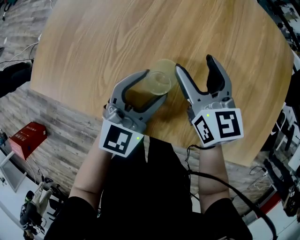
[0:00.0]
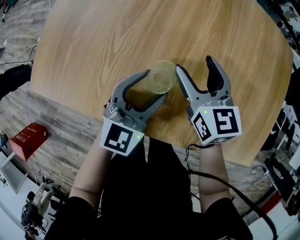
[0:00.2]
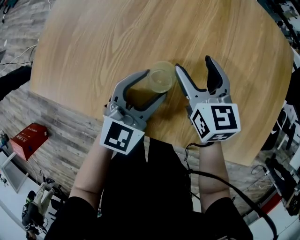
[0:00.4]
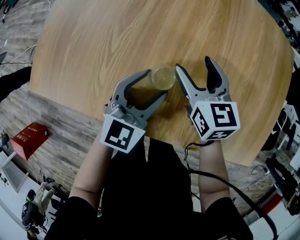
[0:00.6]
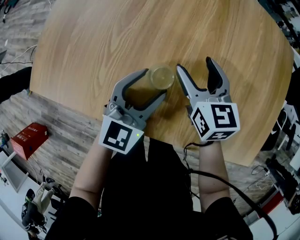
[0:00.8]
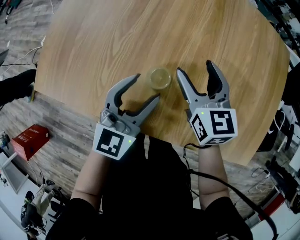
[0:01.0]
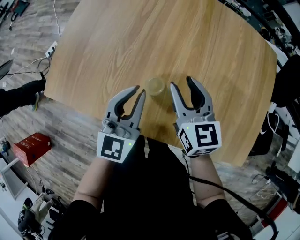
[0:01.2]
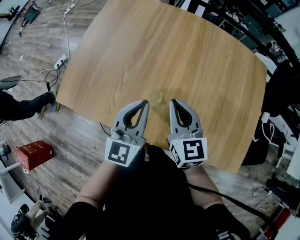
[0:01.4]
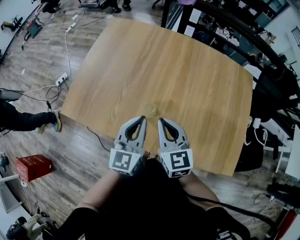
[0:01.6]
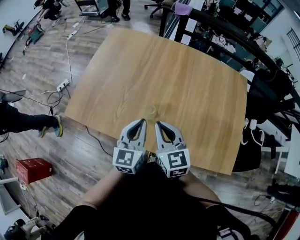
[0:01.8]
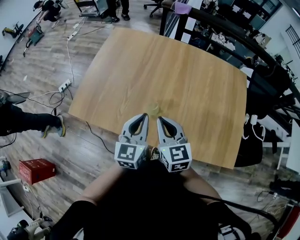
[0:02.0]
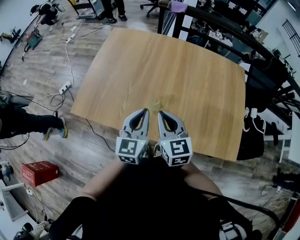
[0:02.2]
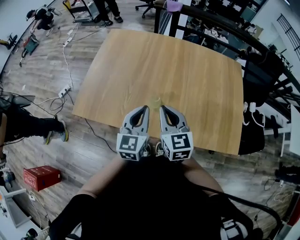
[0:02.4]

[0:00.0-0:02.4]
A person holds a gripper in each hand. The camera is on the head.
0.0 to 1.2 s: Both grippers travel together upward, approximately 10 cm. The left gripper closes; the right gripper closes.
1.2 to 2.4 s: Both grippers travel together upward and backward, roughly 20 cm. The right gripper closes.

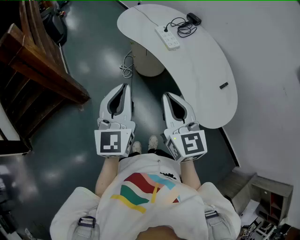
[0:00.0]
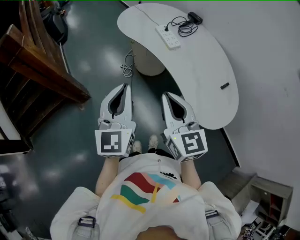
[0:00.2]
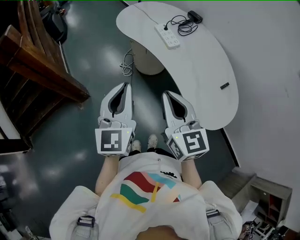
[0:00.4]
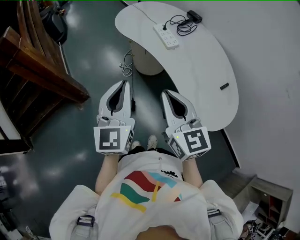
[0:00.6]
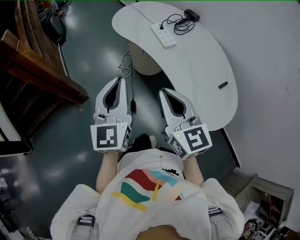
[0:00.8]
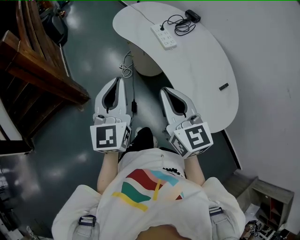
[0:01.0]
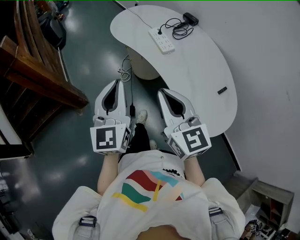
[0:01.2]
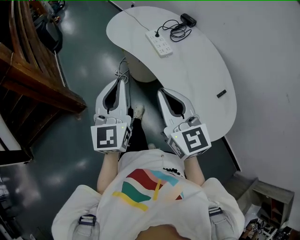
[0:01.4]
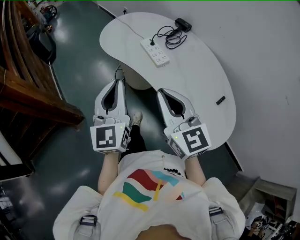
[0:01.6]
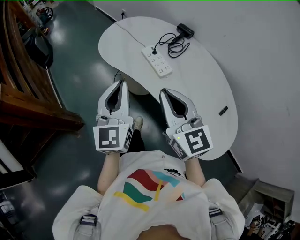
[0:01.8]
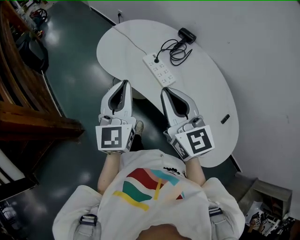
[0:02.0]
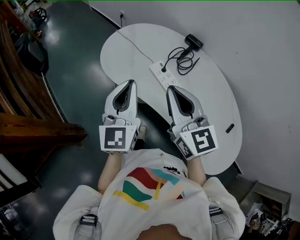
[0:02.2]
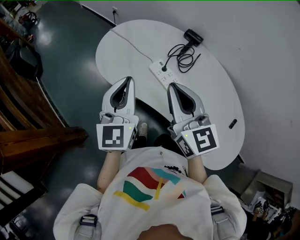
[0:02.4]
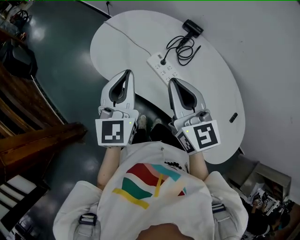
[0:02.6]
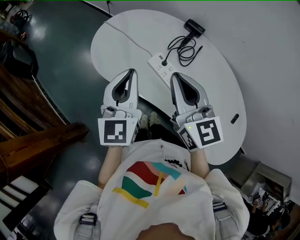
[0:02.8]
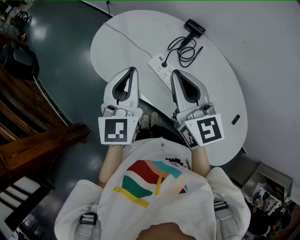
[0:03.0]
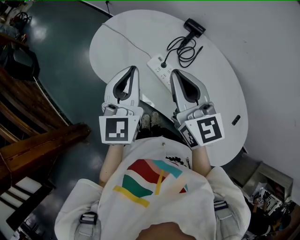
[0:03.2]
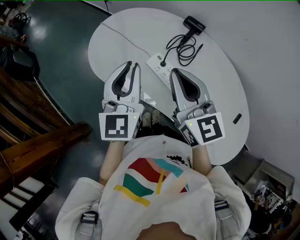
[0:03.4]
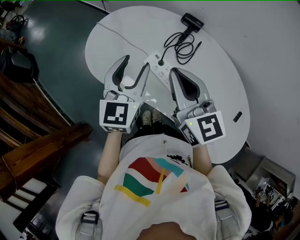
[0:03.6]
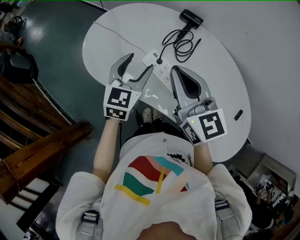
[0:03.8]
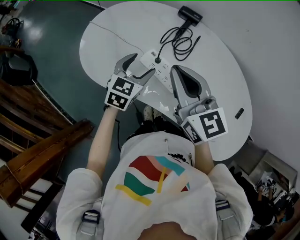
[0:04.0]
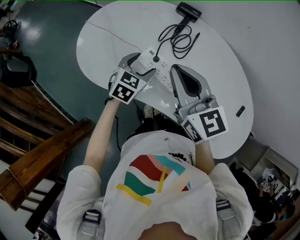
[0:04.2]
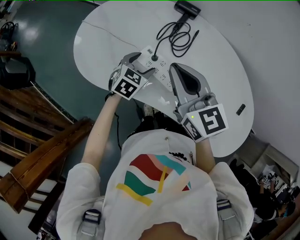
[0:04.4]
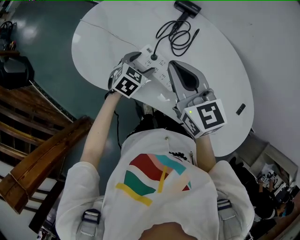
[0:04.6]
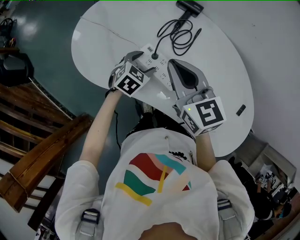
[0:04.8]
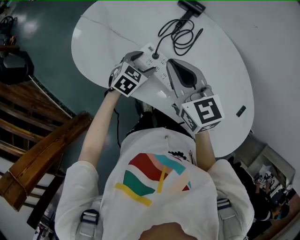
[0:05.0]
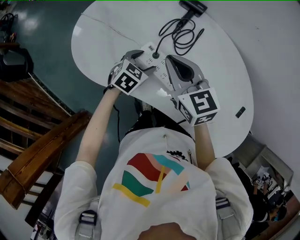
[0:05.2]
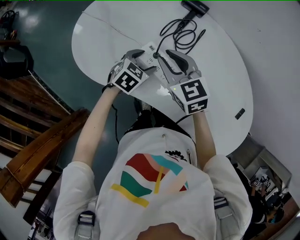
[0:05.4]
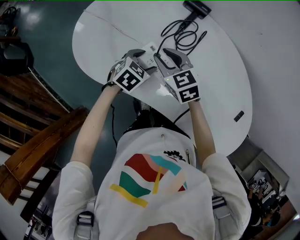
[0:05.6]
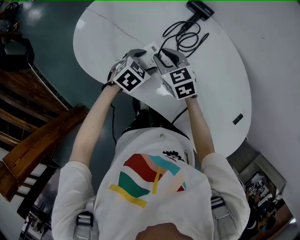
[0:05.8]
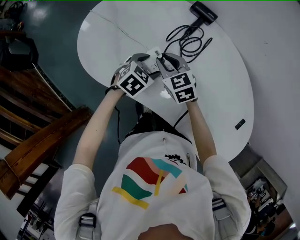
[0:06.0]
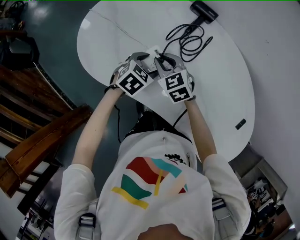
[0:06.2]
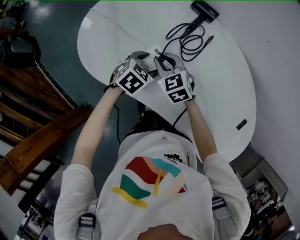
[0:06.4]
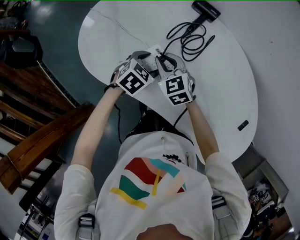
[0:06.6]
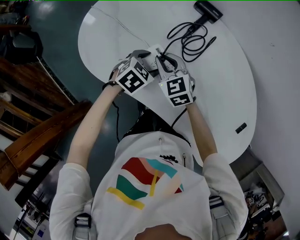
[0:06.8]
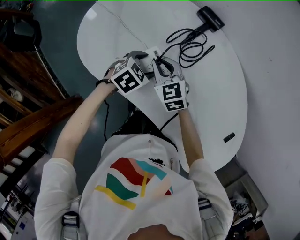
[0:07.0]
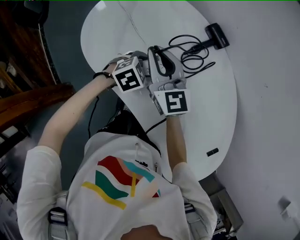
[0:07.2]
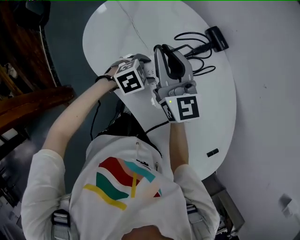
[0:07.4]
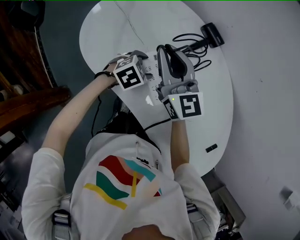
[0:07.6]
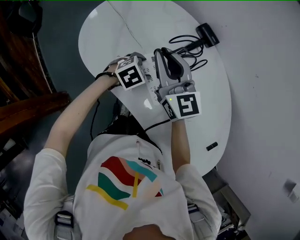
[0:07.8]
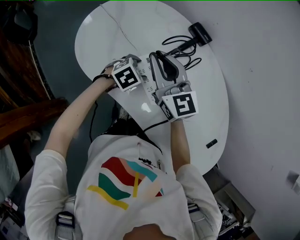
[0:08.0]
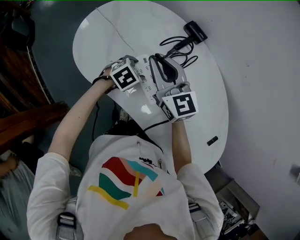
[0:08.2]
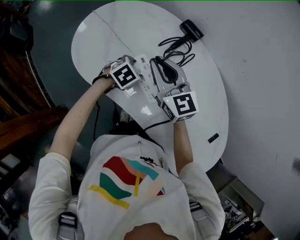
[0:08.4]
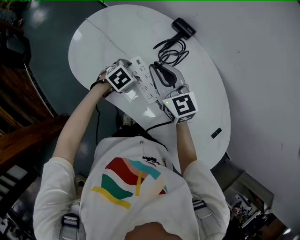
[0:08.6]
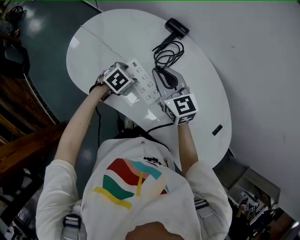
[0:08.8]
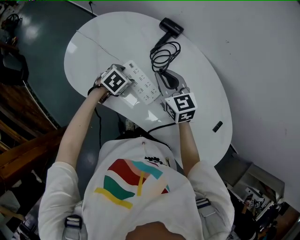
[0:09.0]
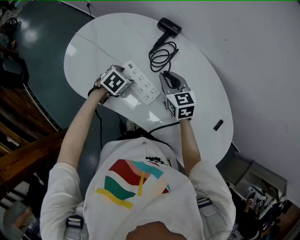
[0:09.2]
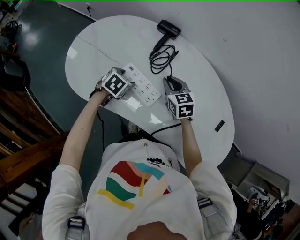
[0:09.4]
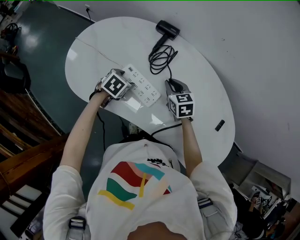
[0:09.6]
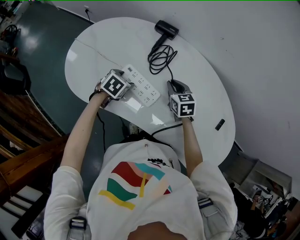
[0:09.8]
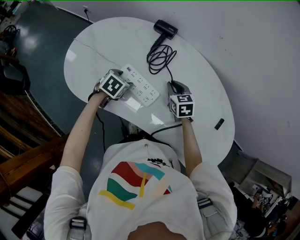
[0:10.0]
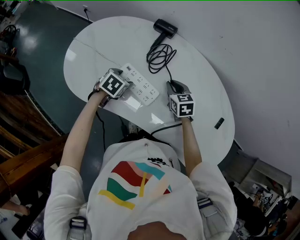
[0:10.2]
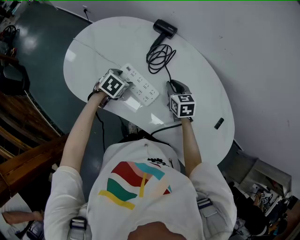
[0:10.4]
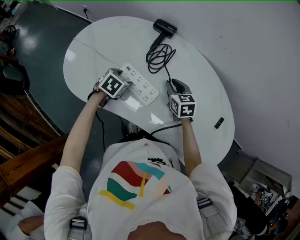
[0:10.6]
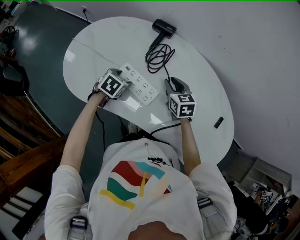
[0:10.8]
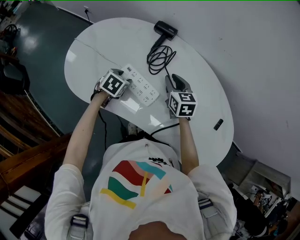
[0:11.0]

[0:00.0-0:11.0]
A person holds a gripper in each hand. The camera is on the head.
0.0 to 1.6 s: The right gripper goes approximately 15 cm forward and to the right. The left gripper is displaced forward by some 15 cm.
1.6 to 3.2 s: The grippers both shift forward by some 30 cm. The left gripper changes its angle by some 20 degrees.
3.2 to 4.8 s: The right gripper goes some 10 cm downward and forward, while the left gripper moves downward, about 25 cm, points its fingers roughly 50 degrees further downward, and opens its fingers.
4.8 to 6.2 s: The right gripper travels downward by approximately 20 cm, and rotates some 30 degrees.
6.2 to 7.8 s: The right gripper shifts roughly 15 cm upward, and tips its fingers upward by about 30 degrees.
7.8 to 9.4 s: The right gripper goes approximately 20 cm to the right and downward, and angles its fingers downward, by about 30 degrees.
9.4 to 11.0 s: The grippers move only a little.

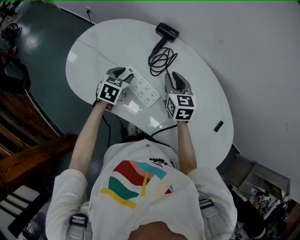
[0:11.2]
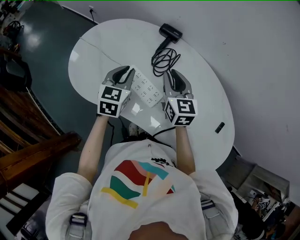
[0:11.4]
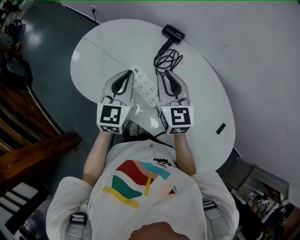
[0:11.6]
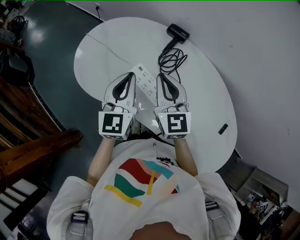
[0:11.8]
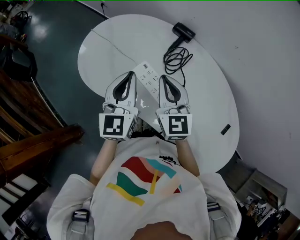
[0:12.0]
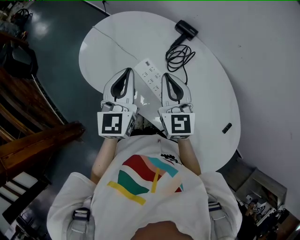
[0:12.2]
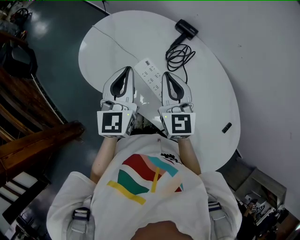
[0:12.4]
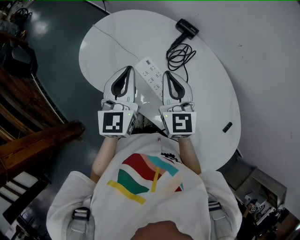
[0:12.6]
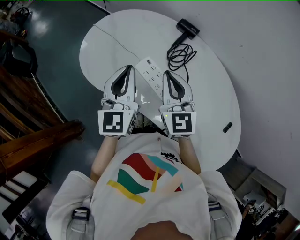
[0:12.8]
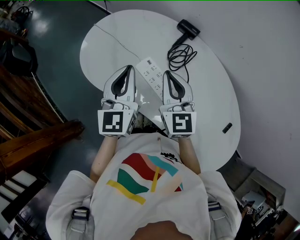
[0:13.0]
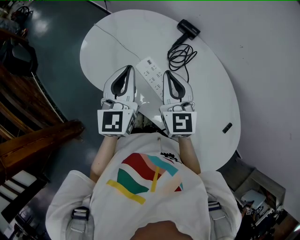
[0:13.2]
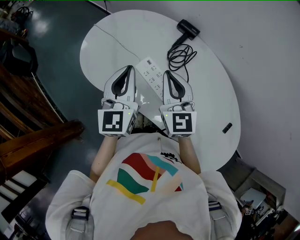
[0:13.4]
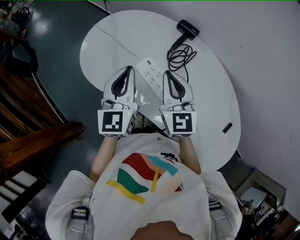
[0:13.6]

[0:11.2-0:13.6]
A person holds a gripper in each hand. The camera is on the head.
11.2 to 12.4 s: The left gripper heads upward and backward, covering some 20 cm, angles its fingers upward, by some 40 degrees, and closes. The right gripper moves to the left, upward and backward, about 15 cm, turns by about 20 degrees, and closes up.
12.4 to 13.6 s: Both grippers stay put.

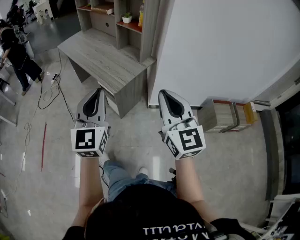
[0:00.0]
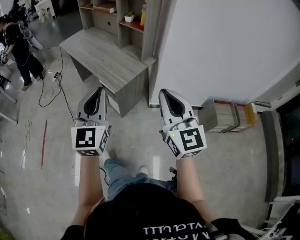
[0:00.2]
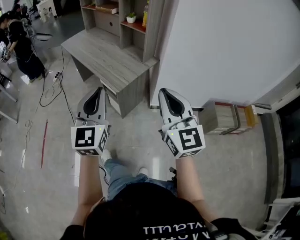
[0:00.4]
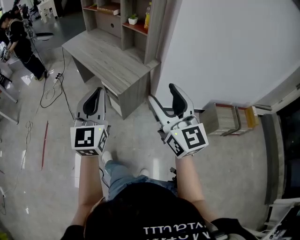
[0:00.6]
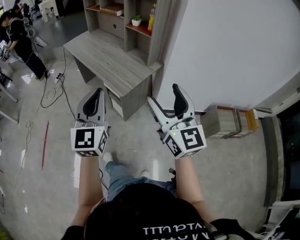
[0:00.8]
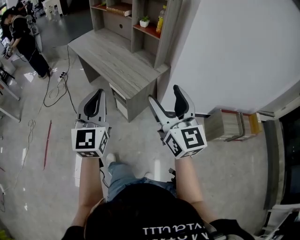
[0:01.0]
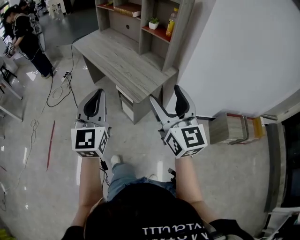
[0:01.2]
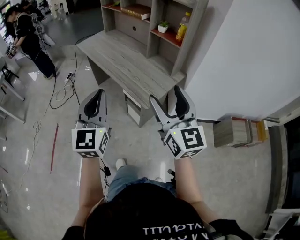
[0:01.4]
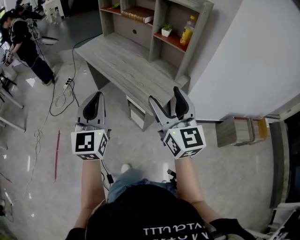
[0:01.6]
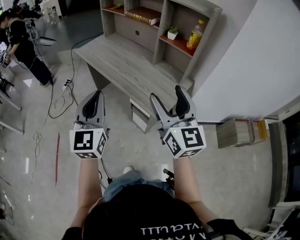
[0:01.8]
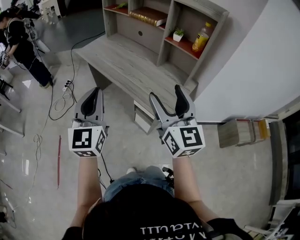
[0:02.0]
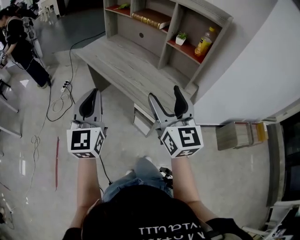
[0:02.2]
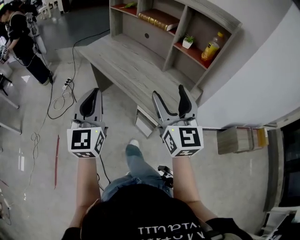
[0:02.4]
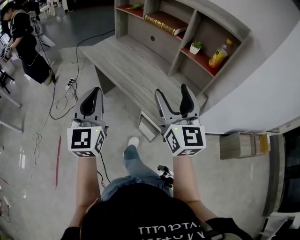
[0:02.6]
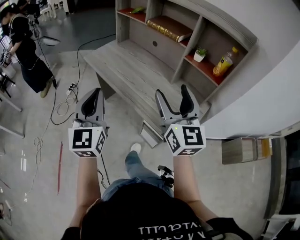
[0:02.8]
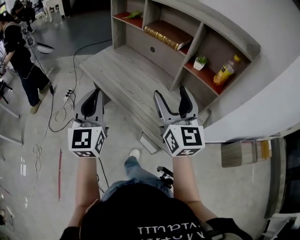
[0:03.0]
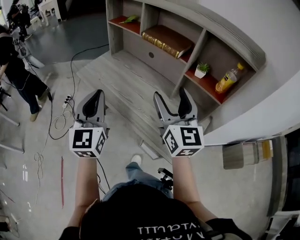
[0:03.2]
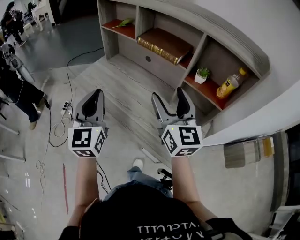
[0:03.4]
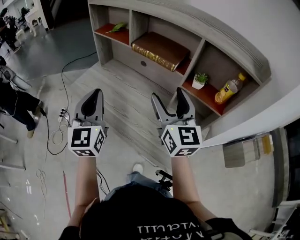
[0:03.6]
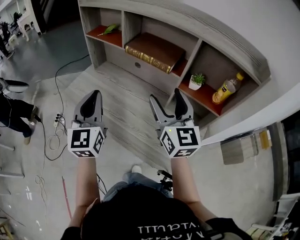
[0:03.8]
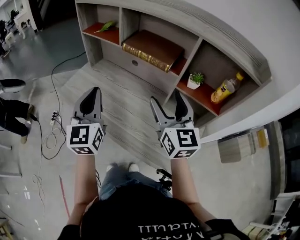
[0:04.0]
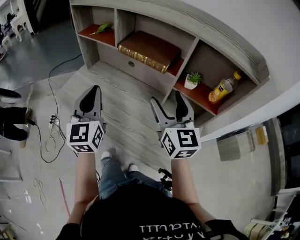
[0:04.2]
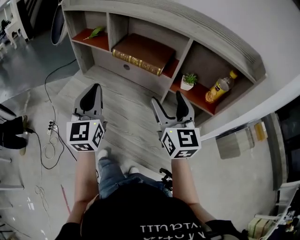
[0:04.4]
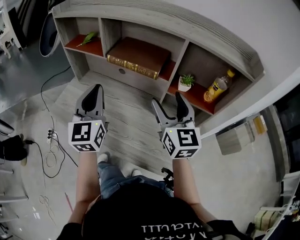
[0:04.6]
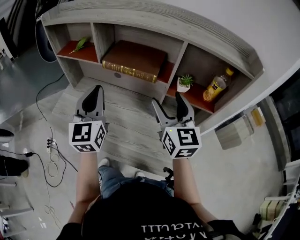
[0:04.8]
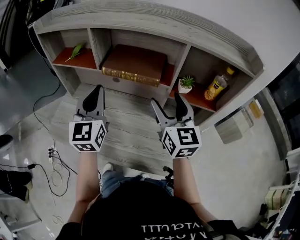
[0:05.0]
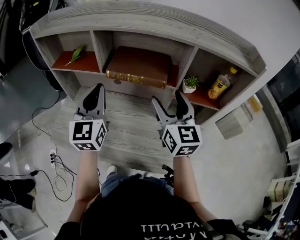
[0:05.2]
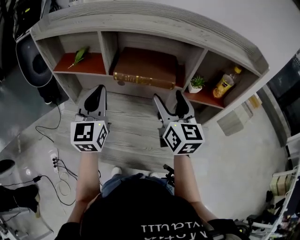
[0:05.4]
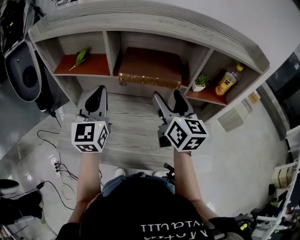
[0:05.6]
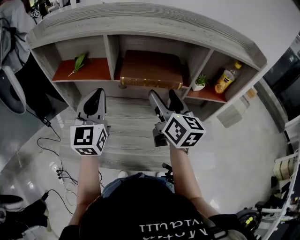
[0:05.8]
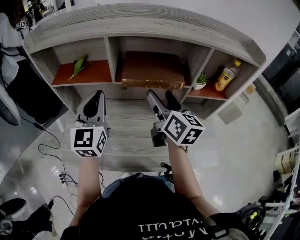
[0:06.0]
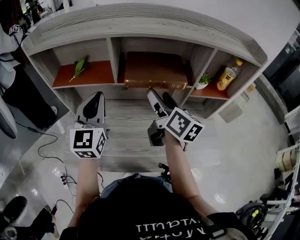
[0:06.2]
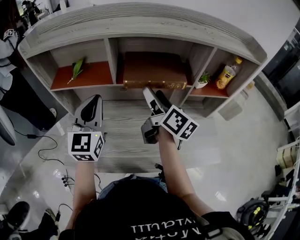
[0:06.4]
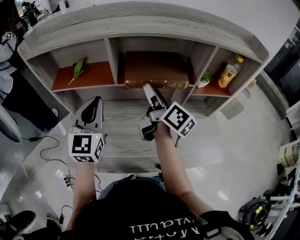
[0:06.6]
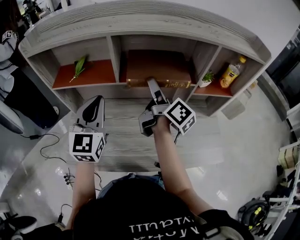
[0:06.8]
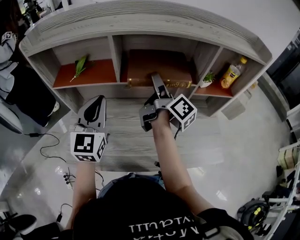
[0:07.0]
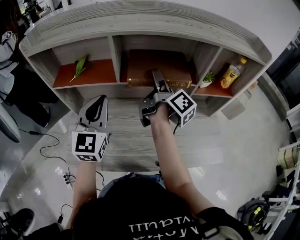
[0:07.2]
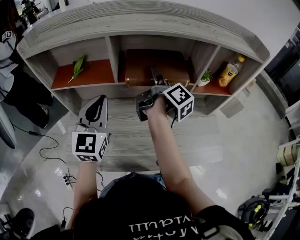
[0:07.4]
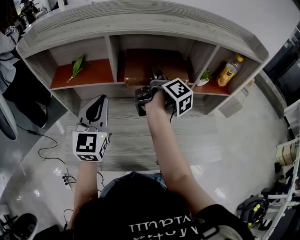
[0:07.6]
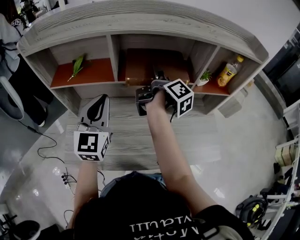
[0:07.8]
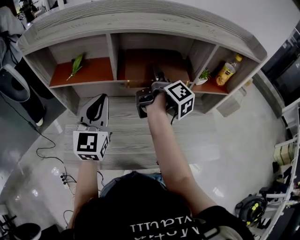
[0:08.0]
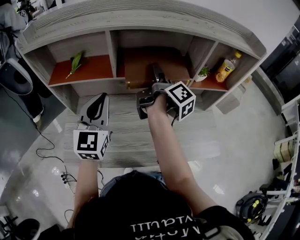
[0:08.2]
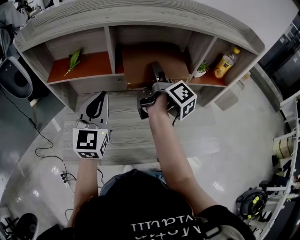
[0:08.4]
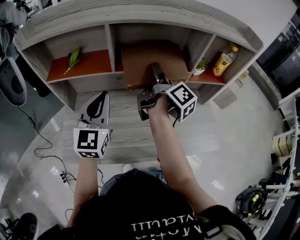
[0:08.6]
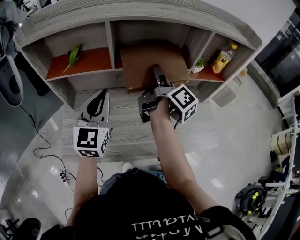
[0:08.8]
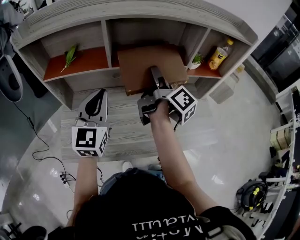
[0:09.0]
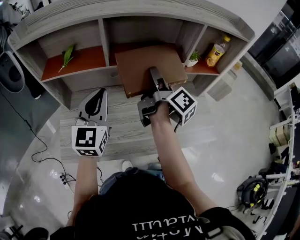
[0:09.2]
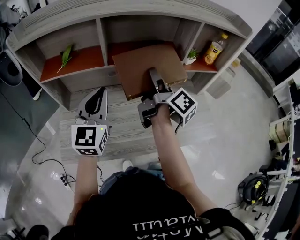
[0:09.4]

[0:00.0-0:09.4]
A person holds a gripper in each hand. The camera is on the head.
0.0 to 1.6 s: Both grippers travel together to the left and forward, approximately 25 cm. The right gripper opens.
1.6 to 3.2 s: Both grippers move forward, approximately 35 cm.
3.2 to 4.8 s: The left gripper is displaced forward by approximately 25 cm, and turns by about 20 degrees. Meanwhile the right gripper travels forward by approximately 15 cm, and swivels about 20 degrees.
4.8 to 6.2 s: Both grippers move to the left and forward, some 15 cm. The left gripper changes its angle by about 20 degrees. The right gripper rolls clockwise, seen from behind, by about 40 degrees.
6.2 to 7.8 s: The right gripper moves forward, about 10 cm, and rolls clockwise, seen from behind, by about 40 degrees.
7.8 to 9.4 s: The right gripper goes roughly 10 cm backward.
